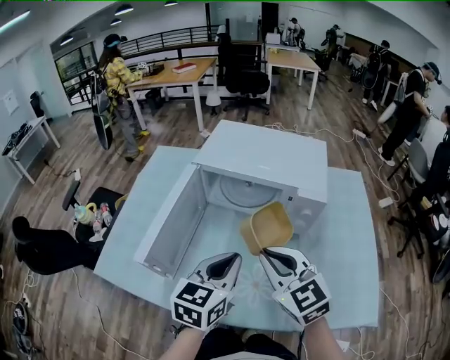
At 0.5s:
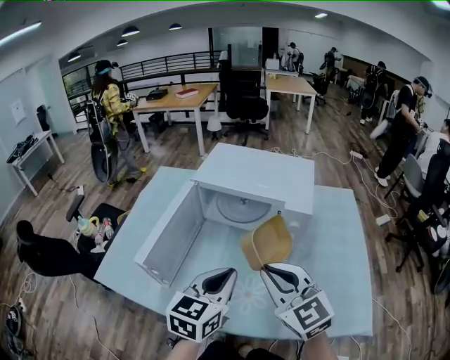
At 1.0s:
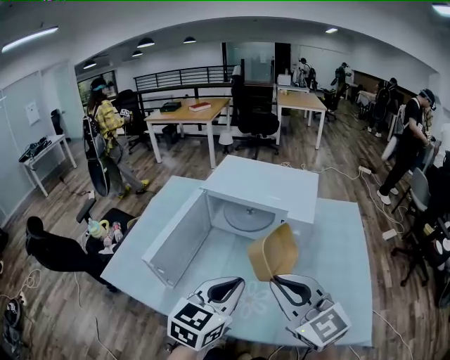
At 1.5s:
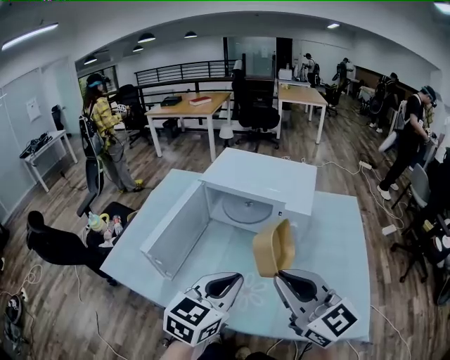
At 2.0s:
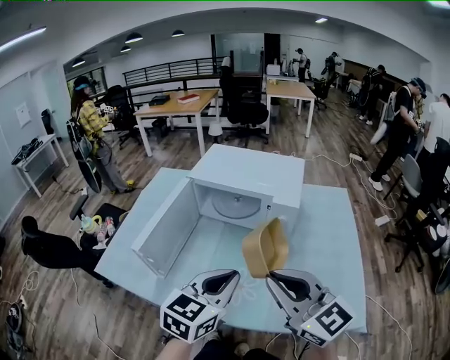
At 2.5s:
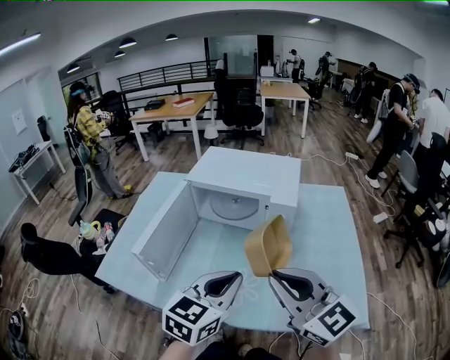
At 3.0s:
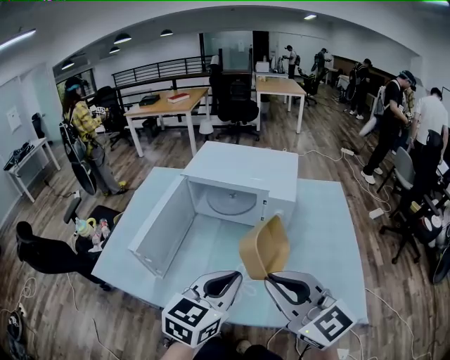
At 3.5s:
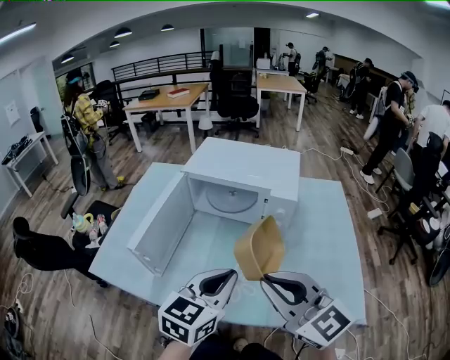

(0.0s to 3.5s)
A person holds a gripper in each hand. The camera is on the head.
0.0s - 2.0s: The right gripper is displaced backward, upward and to the right by approximately 15 cm, and swivels about 20 degrees. The left gripper heads backward and to the right, covering approximately 10 cm.
2.0s - 3.5s: There are only small adjustments of the grippers.

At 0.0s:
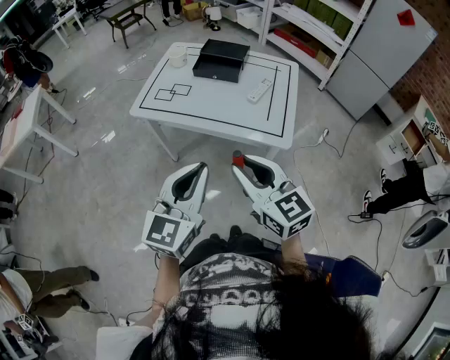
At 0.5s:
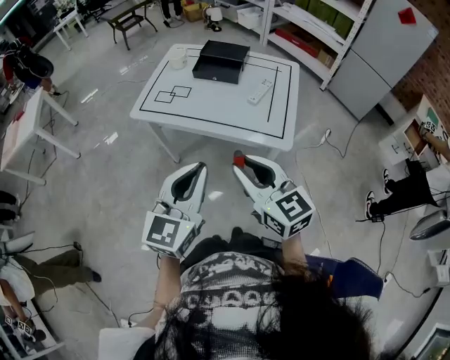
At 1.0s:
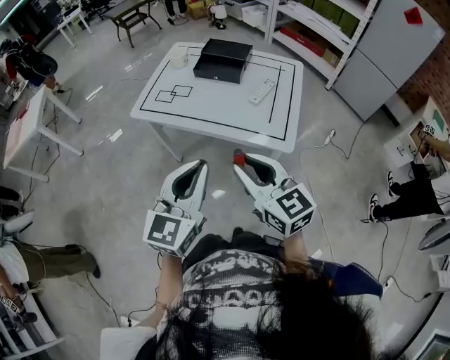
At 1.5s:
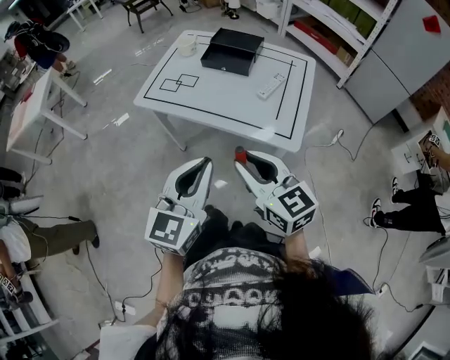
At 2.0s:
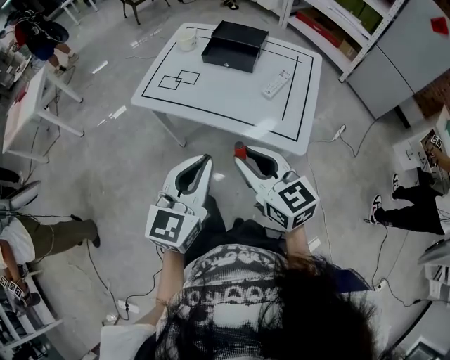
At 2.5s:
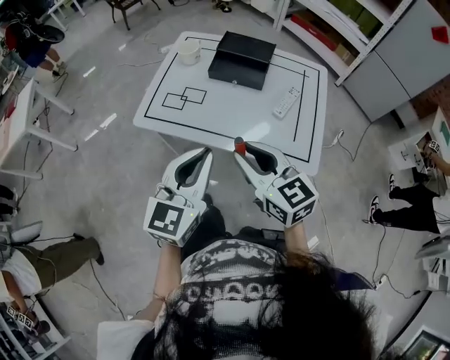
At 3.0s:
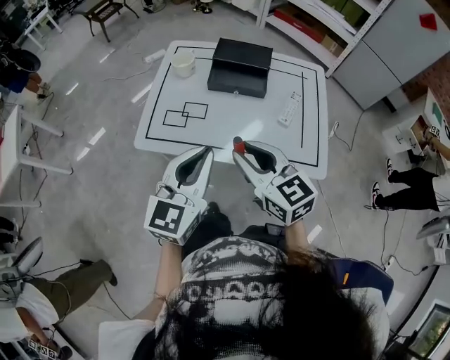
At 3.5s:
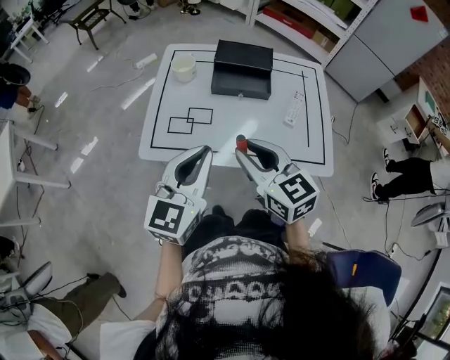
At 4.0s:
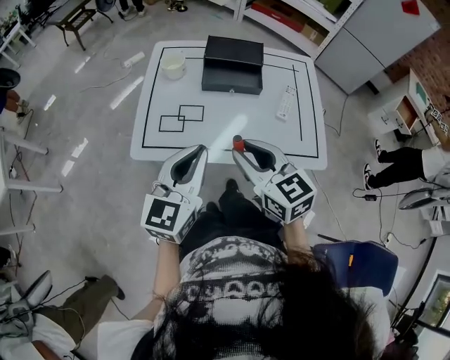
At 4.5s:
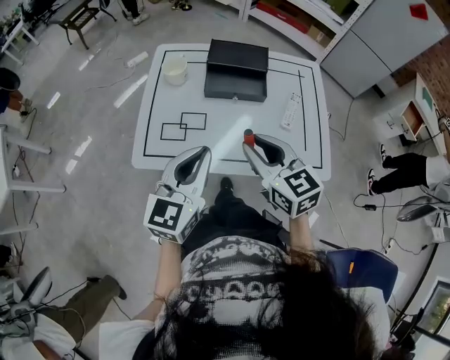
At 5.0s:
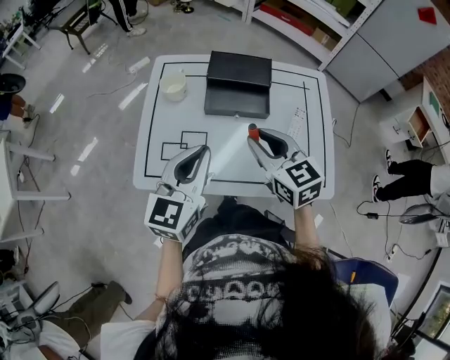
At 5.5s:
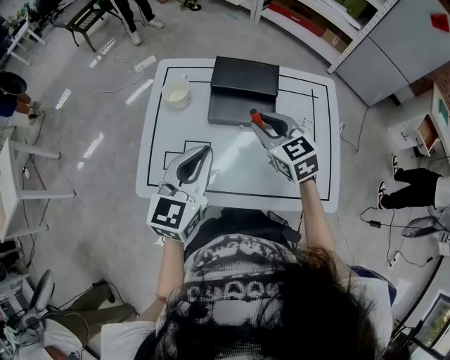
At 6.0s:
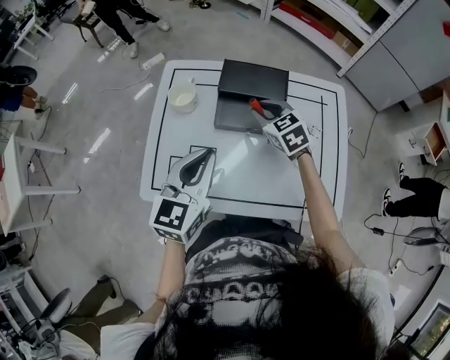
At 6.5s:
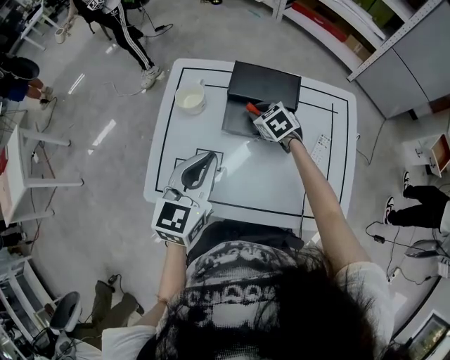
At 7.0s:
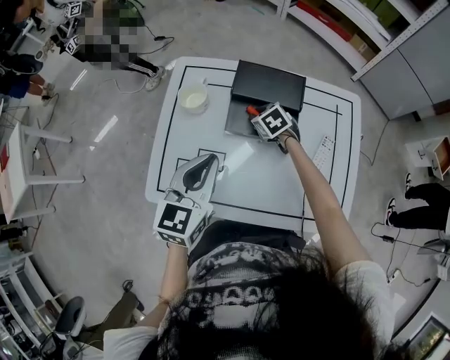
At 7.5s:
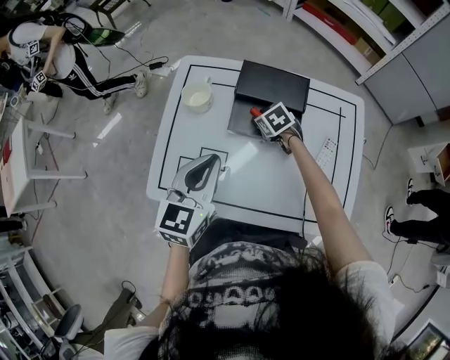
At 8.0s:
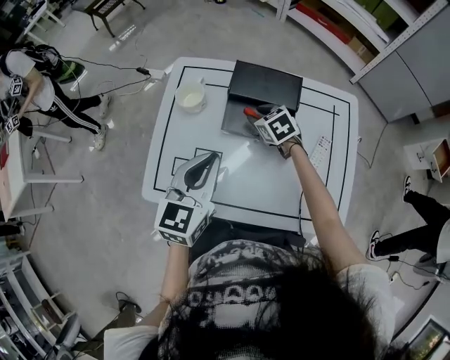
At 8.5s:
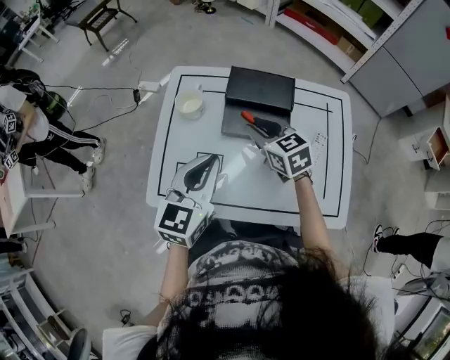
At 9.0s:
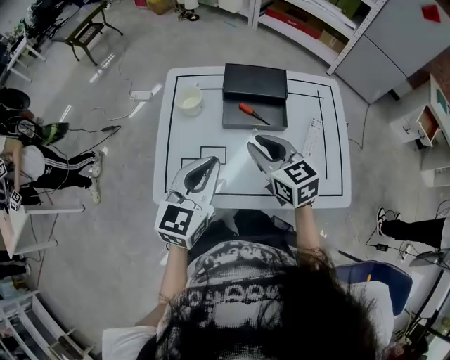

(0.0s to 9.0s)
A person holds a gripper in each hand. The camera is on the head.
0.0s - 2.0s: The left gripper goes about 10 cm forward; the right gripper travels forward and downward by about 10 cm.
2.0s - 4.5s: Both grippers move forward and to the left, approximately 30 cm. The right gripper changes its angle by some 20 degrees.
4.5s - 7.0s: The left gripper is displaced forward by roughly 20 cm; the right gripper goes approximately 40 cm forward and downward, and points its fingers roughly 40 degrees further downward.
7.0s - 9.0s: The left gripper shifts about 5 cm backward, while the right gripper heads upward and backward, covering about 30 cm, and angles its fingers upward, by some 30 degrees.

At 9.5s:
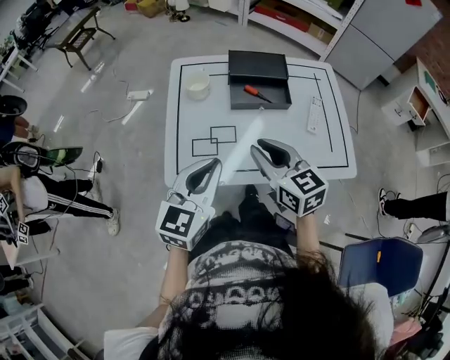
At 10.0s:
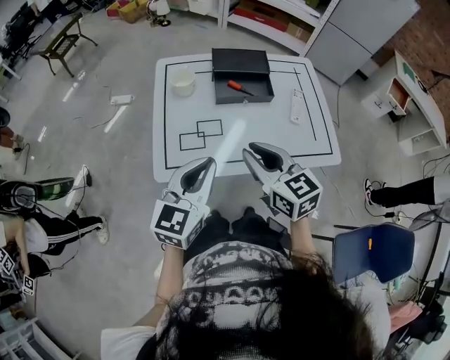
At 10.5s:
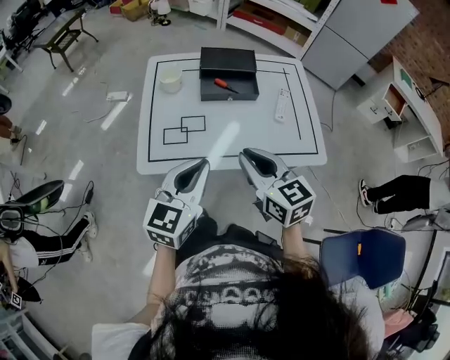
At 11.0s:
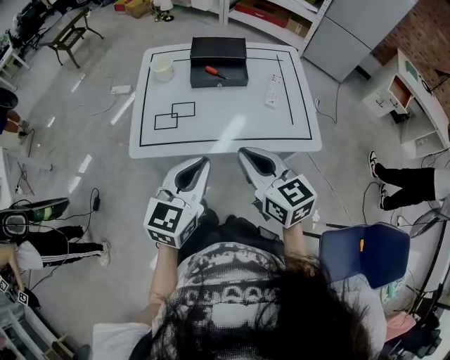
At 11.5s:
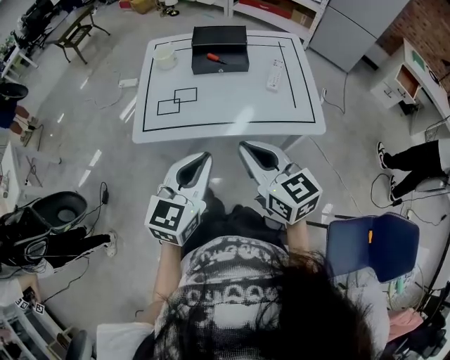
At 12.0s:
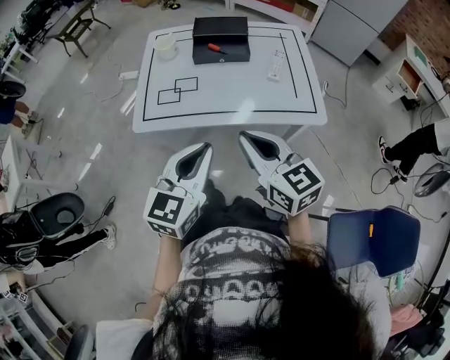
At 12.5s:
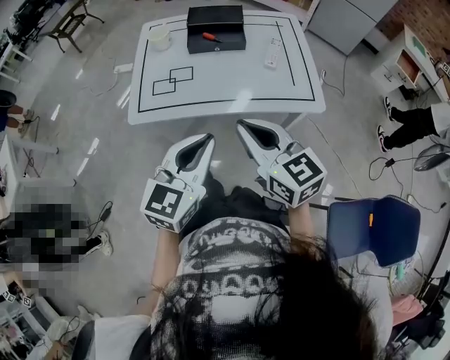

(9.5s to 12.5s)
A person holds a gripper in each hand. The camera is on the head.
9.5s - 11.0s: Both grippers move backward and to the right, approximately 20 cm.
11.0s - 12.5s: The two grippers go some 5 cm backward.

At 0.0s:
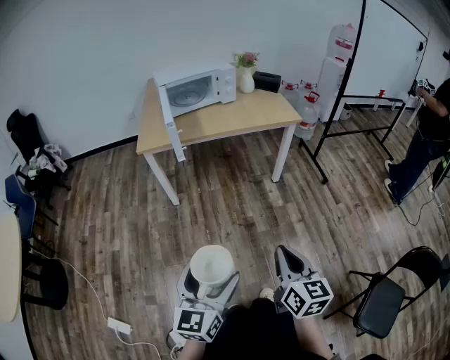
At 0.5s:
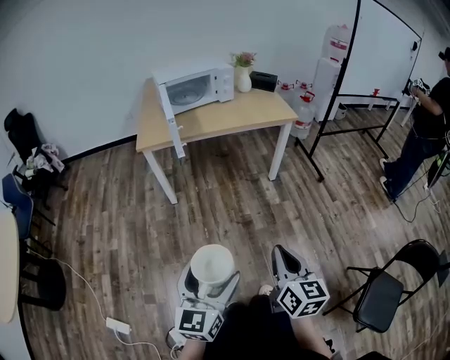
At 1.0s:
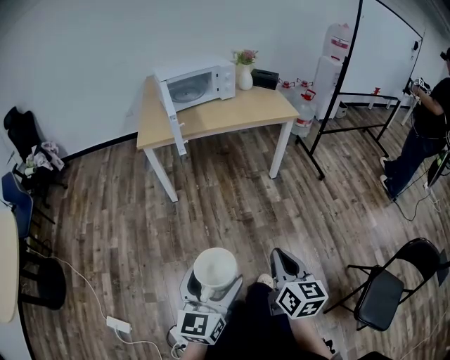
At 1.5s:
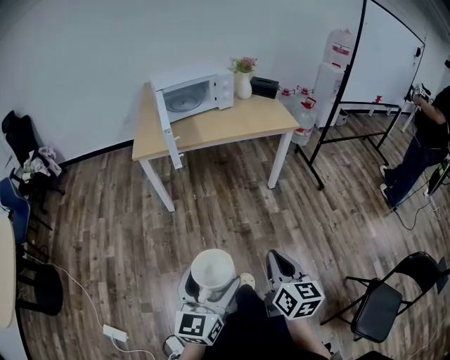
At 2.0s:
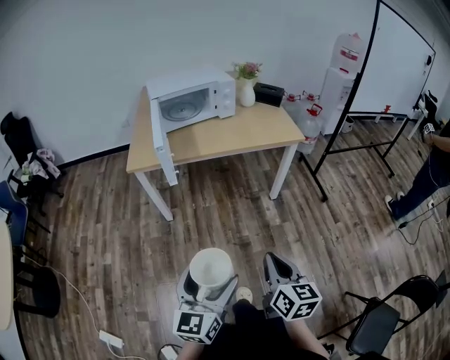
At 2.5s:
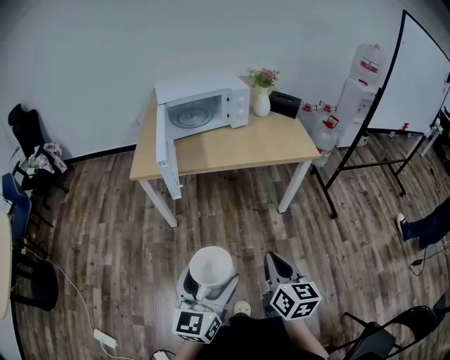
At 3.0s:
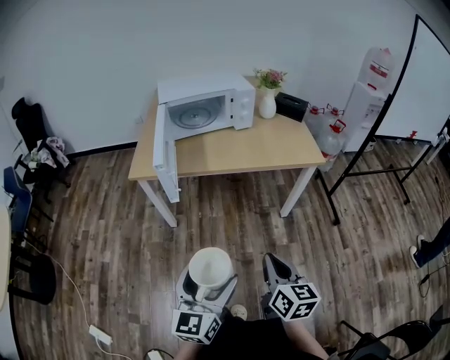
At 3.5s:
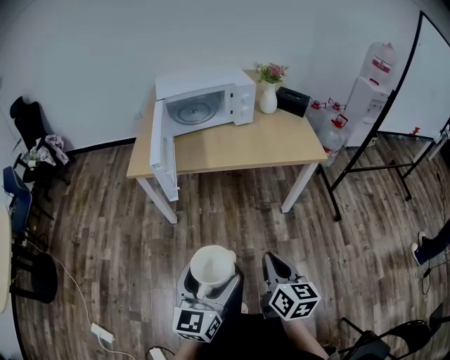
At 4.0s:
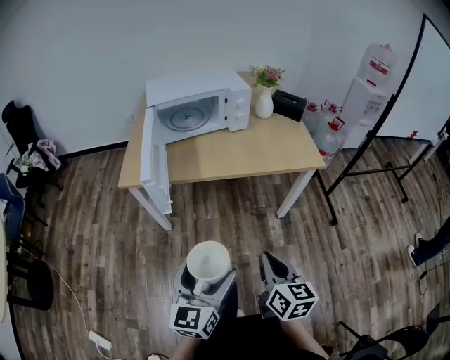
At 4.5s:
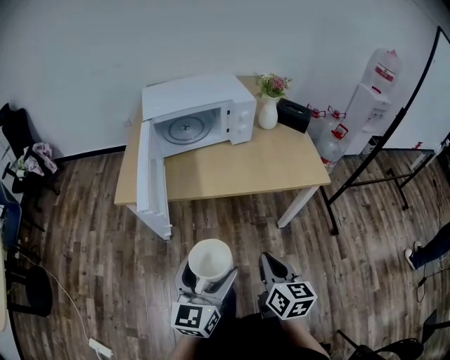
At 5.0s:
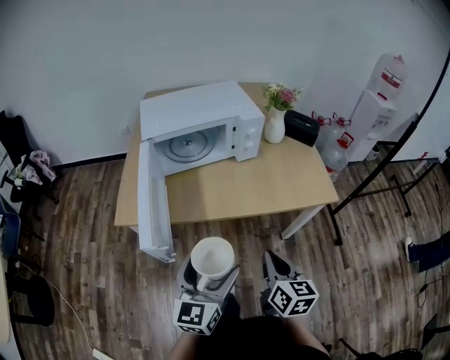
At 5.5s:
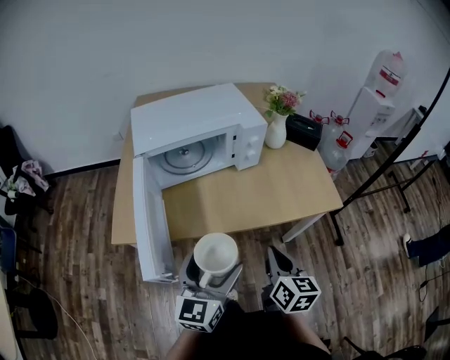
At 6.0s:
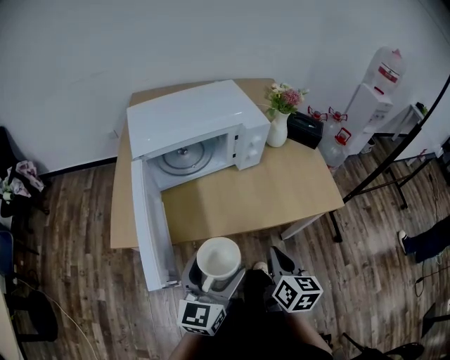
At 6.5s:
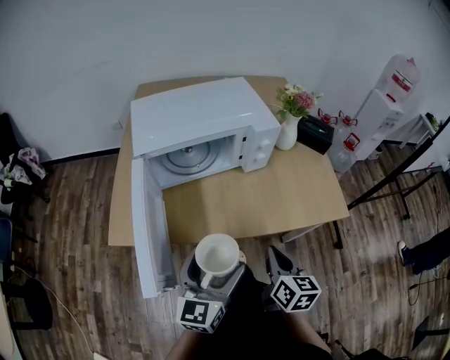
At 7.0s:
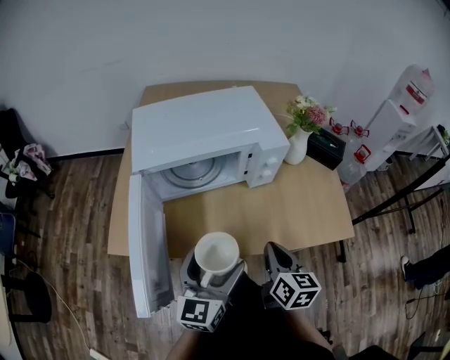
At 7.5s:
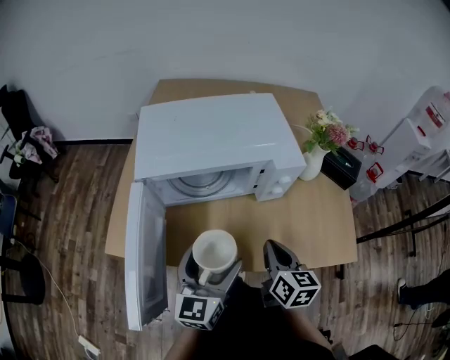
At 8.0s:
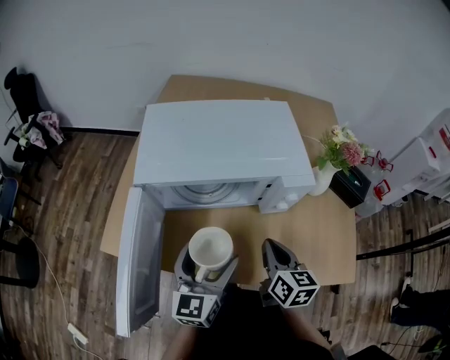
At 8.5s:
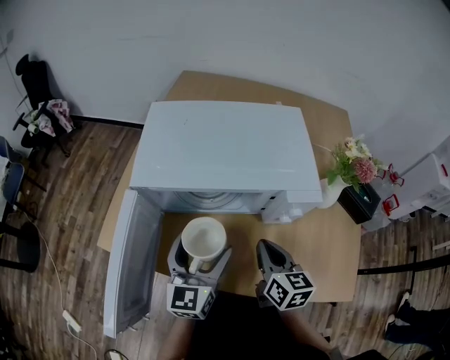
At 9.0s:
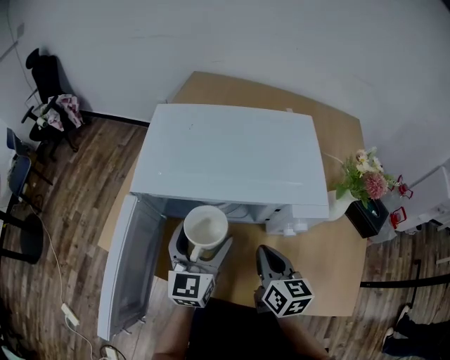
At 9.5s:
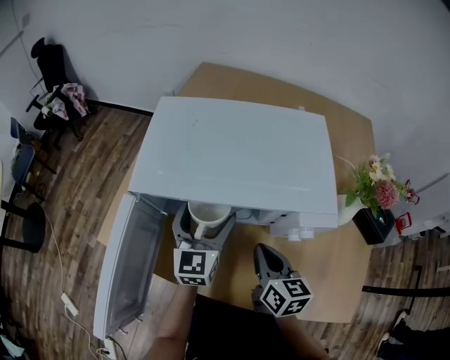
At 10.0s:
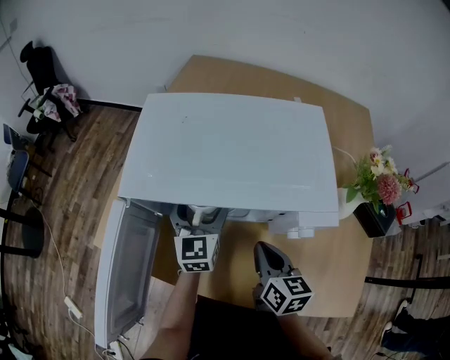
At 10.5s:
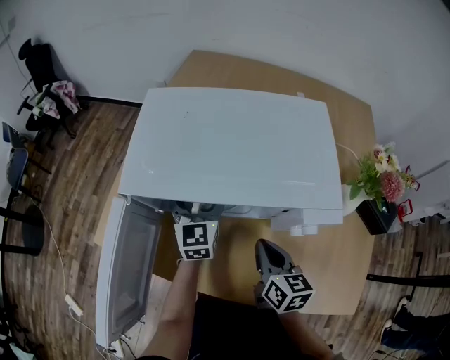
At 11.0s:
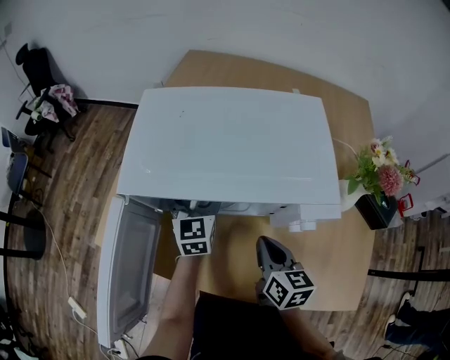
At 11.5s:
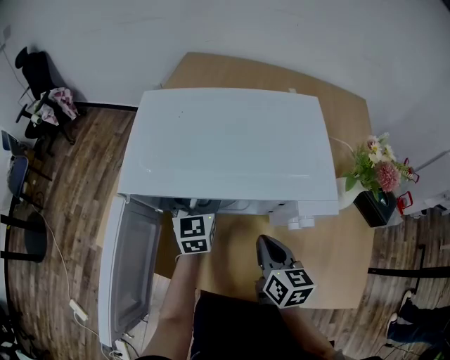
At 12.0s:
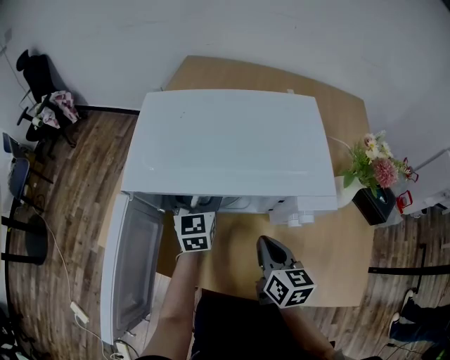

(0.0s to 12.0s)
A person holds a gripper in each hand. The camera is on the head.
0.0s - 2.0s: Both grippers move forward, about 15 cm.
2.0s - 4.0s: Both grippers move forward, some 20 cm.
4.0s - 6.0s: The grippers both shift forward by some 30 cm.
6.0s - 8.0s: The two grippers go some 25 cm forward. The right gripper turns by roughly 20 degrees, while the left gripper changes its angle by about 20 degrees.
8.0s - 10.0s: The left gripper shifts some 20 cm forward, and swivels some 20 degrees. Meanwhile the right gripper travels forward by approximately 10 cm.
10.0s - 12.0s: The grippers move only a little.
